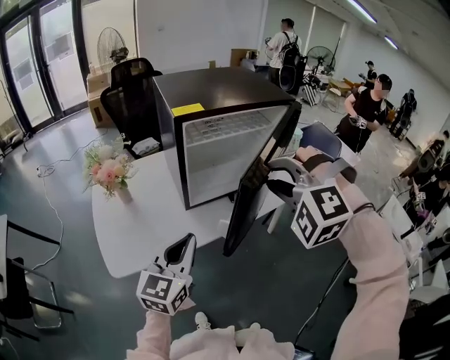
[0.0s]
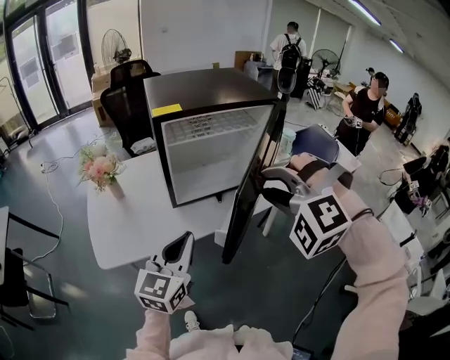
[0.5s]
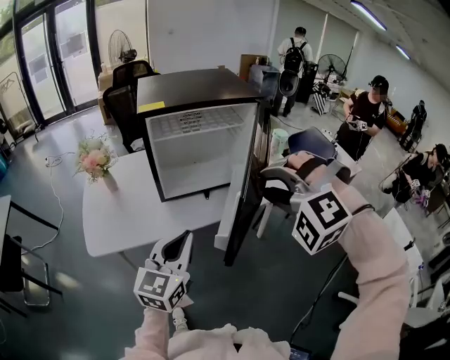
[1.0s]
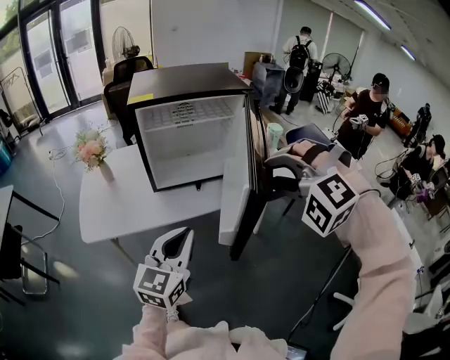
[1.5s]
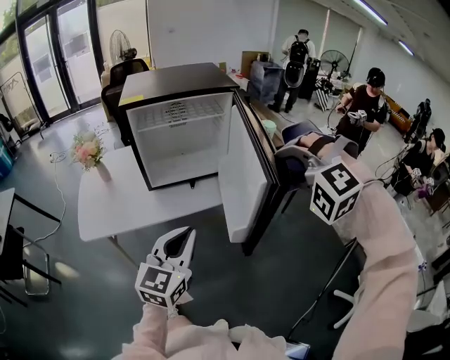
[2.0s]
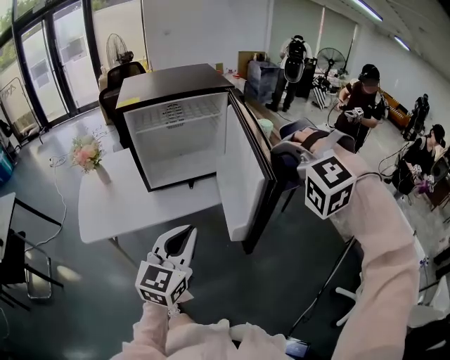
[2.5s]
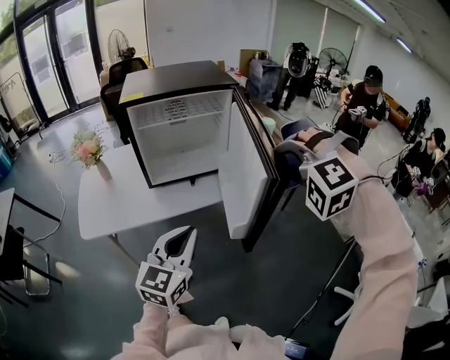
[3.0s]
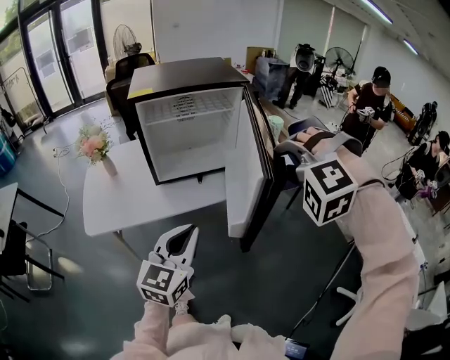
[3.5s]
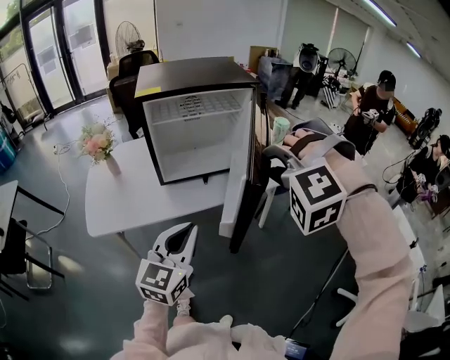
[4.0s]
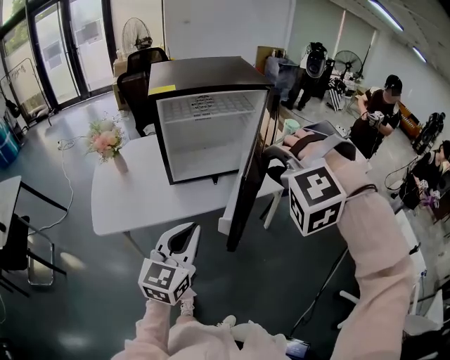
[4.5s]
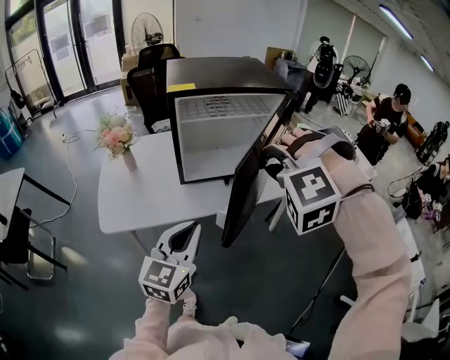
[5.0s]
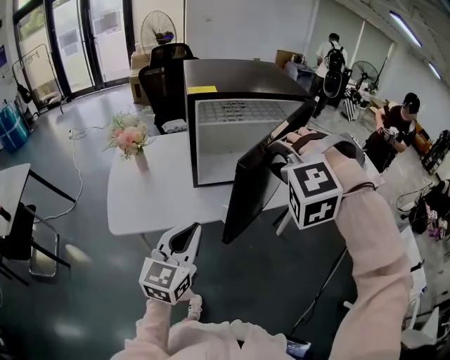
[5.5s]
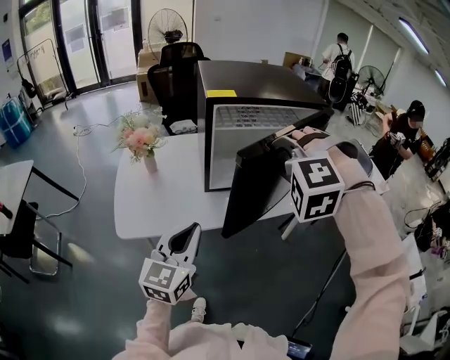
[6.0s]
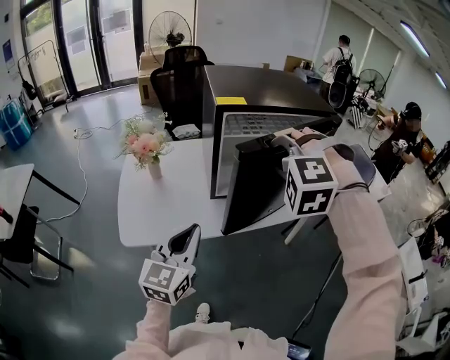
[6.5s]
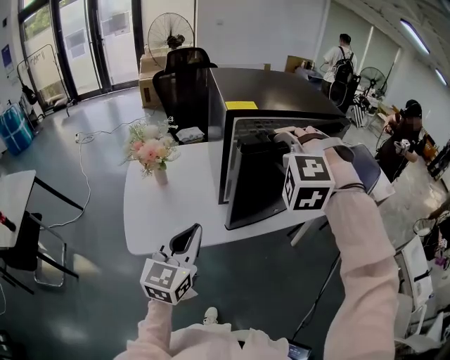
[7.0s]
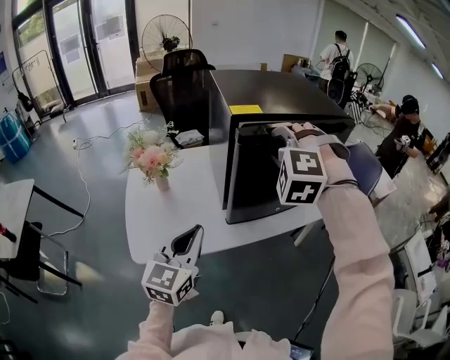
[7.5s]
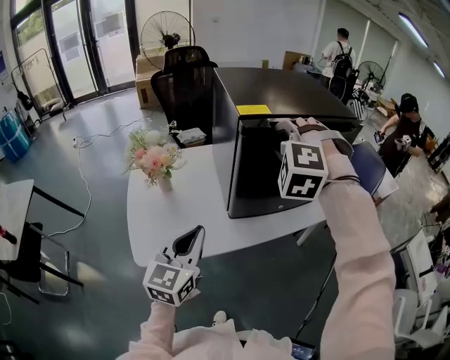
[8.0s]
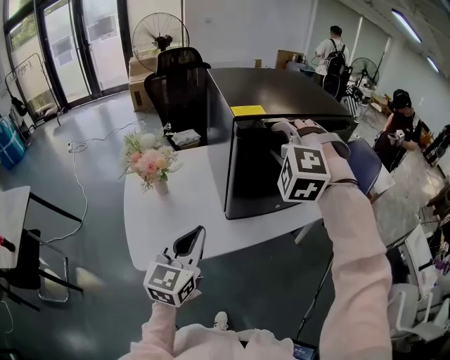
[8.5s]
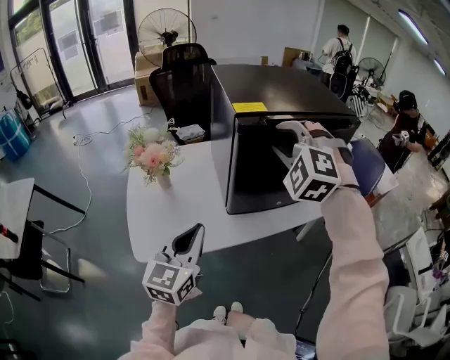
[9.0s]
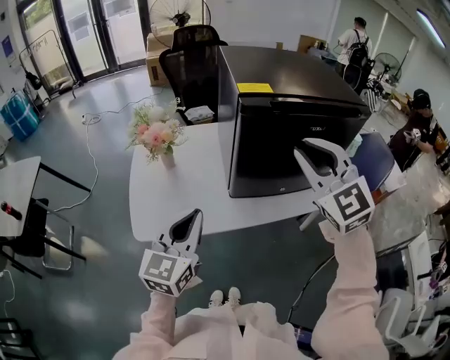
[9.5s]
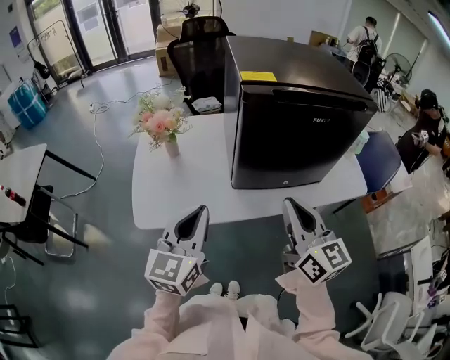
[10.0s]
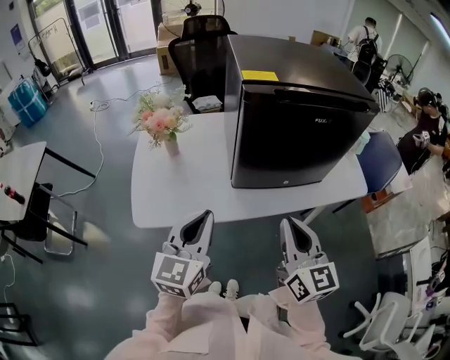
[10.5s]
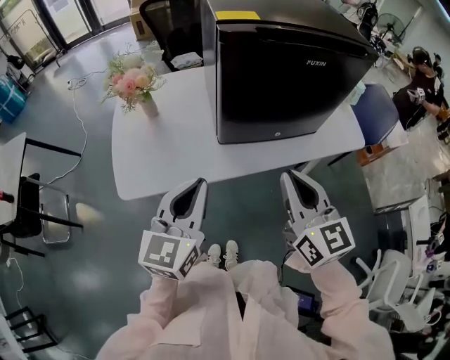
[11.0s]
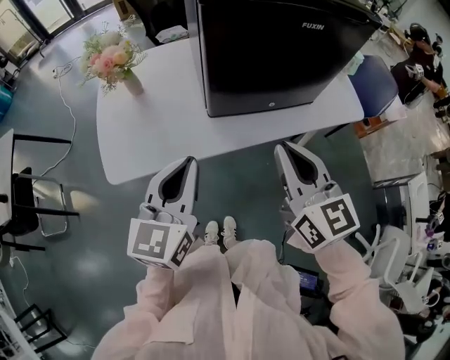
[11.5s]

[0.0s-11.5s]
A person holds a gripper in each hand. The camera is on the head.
0.0s to 2.0s: Both grippers move to the right, some 25 cm.
2.0s to 4.0s: The left gripper goes about 5 cm to the left. Meanwhile the right gripper goes approximately 10 cm to the left.
4.0s to 6.0s: The right gripper goes approximately 20 cm to the left and forward. Meanwhile the left gripper goes roughly 20 cm to the left.
6.0s to 7.5s: The left gripper travels to the left and forward by approximately 10 cm. The right gripper goes roughly 15 cm forward and to the left.
7.5s to 9.5s: The right gripper travels backward by about 5 cm, and swivels roughly 60 degrees.
9.5s to 11.5s: The right gripper goes about 20 cm downward and backward, and rolls clockwise, seen from behind, by roughly 40 degrees, while the left gripper goes about 5 cm to the right.

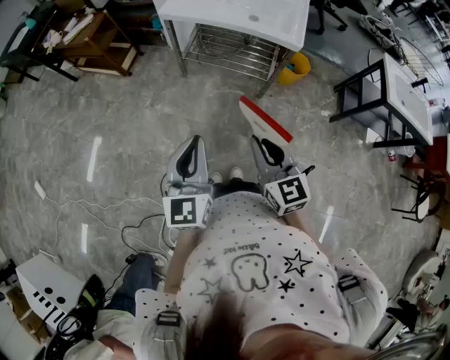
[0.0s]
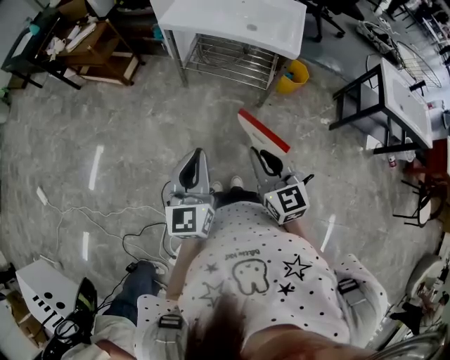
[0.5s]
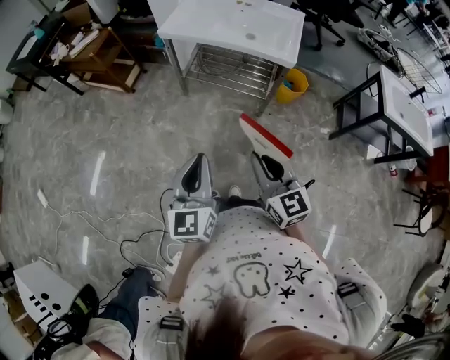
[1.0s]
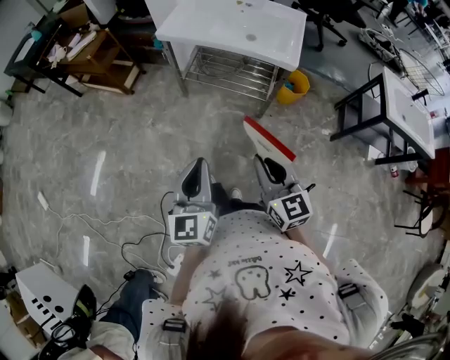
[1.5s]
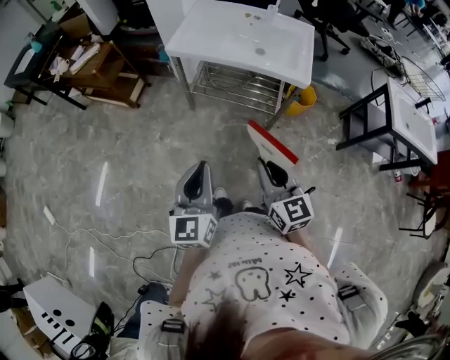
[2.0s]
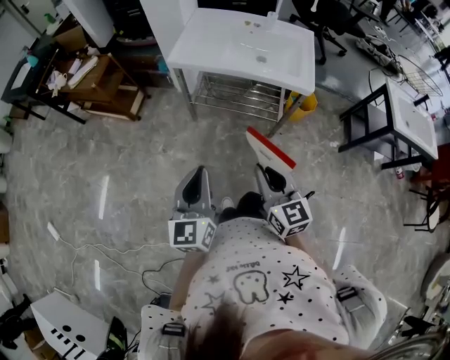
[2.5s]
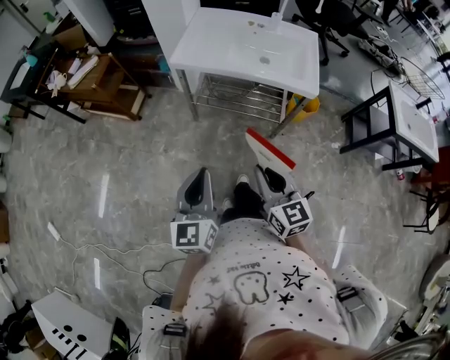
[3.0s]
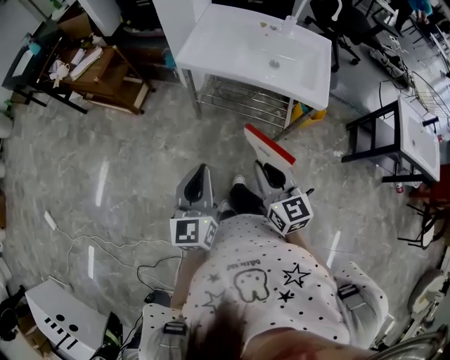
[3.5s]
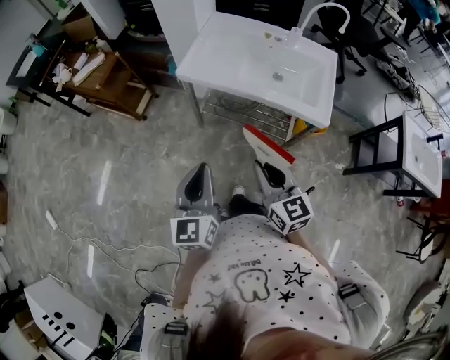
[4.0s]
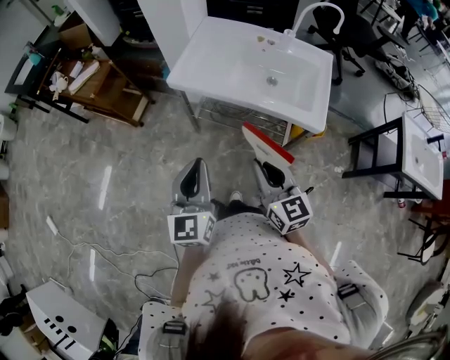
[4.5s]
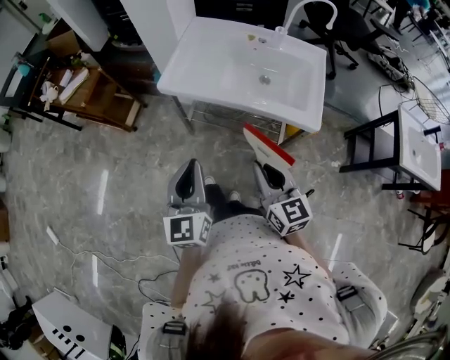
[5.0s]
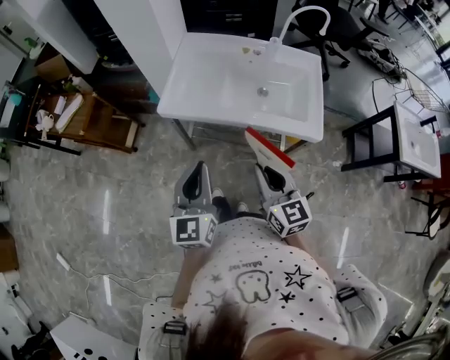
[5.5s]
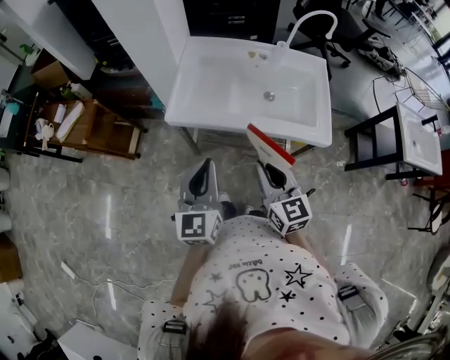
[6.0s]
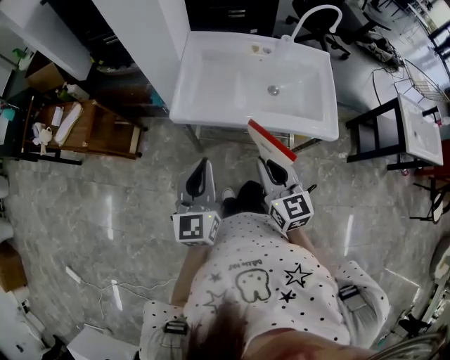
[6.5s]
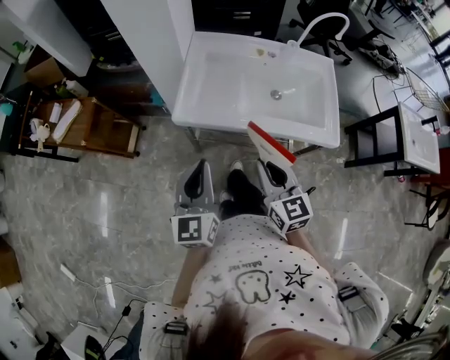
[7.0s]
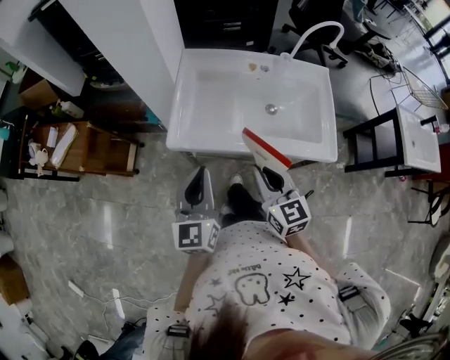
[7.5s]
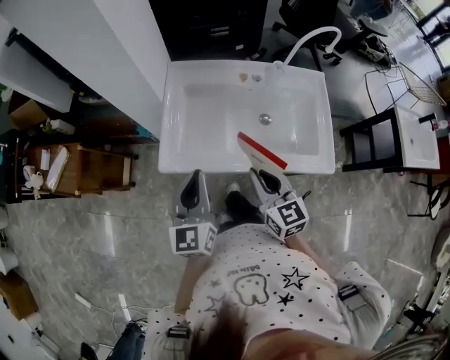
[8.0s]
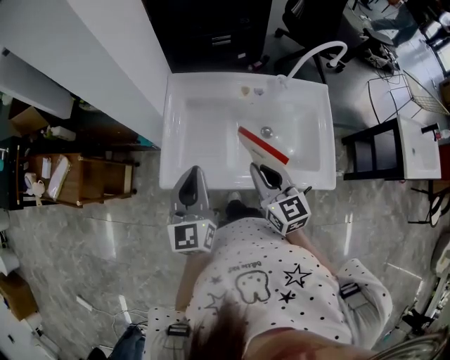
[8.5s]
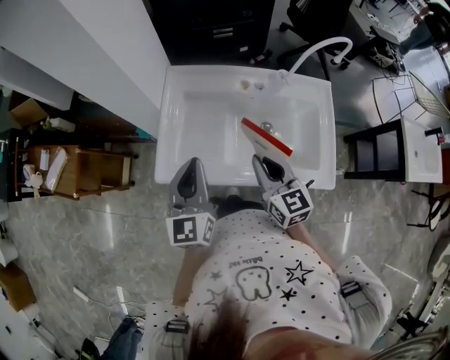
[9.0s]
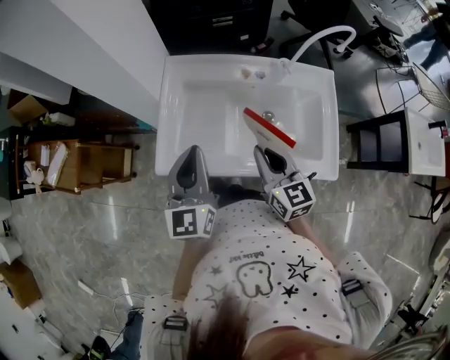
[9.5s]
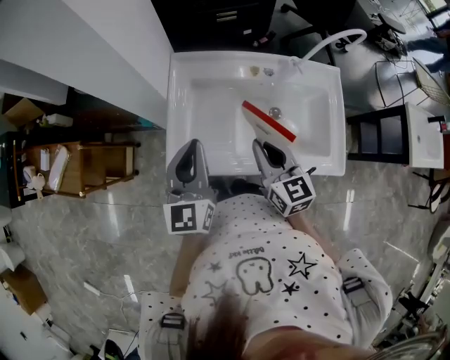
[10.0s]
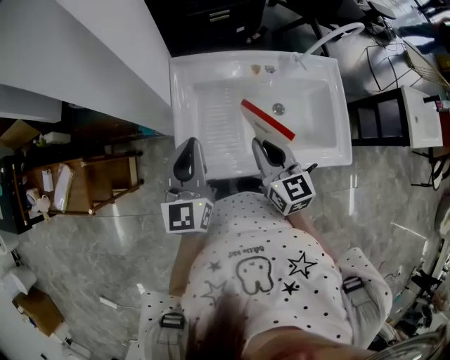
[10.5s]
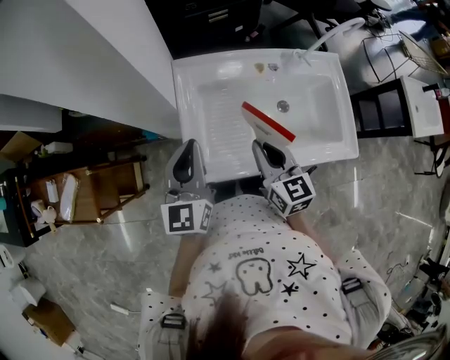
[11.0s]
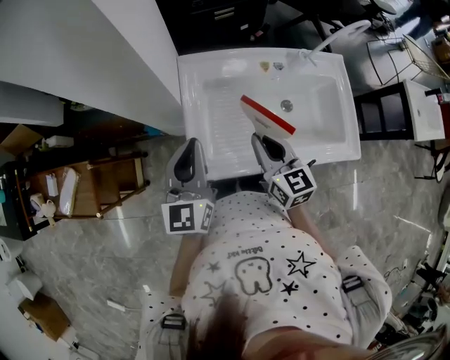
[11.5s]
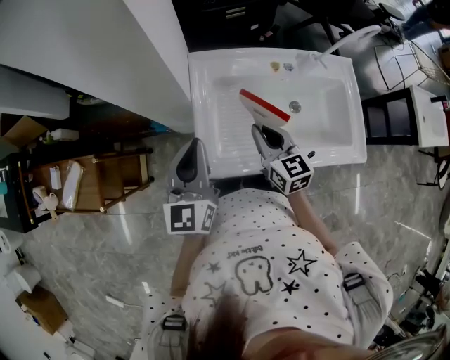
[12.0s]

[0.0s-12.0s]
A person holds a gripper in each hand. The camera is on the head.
0.0s to 2.0s: The two grippers go approximately 10 cm forward.
2.0s to 4.0s: The two grippers go about 15 cm forward.
4.0s to 6.0s: The grippers both shift forward by approximately 15 cm.
6.0s to 8.0s: The two grippers go some 15 cm forward.
8.0s to 10.0s: Both grippers move forward, roughly 10 cm.
10.0s to 12.0s: The left gripper heads to the left, covering roughly 10 cm. Meanwhile the right gripper goes some 10 cm to the left and forward.

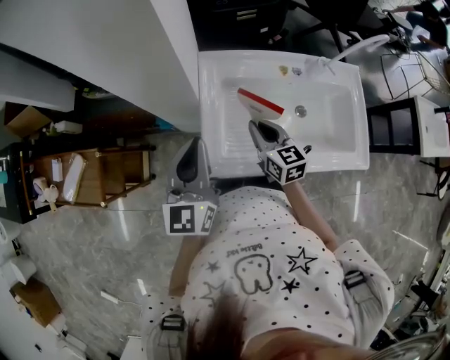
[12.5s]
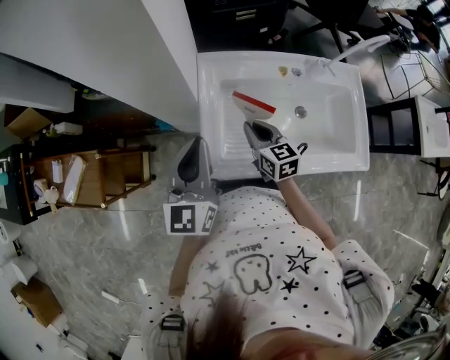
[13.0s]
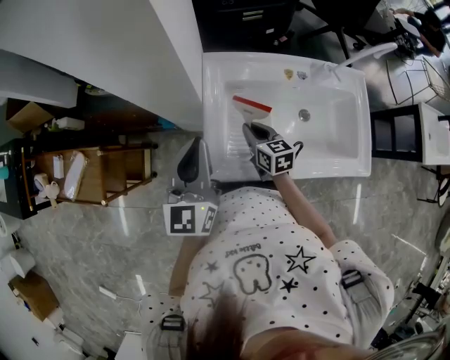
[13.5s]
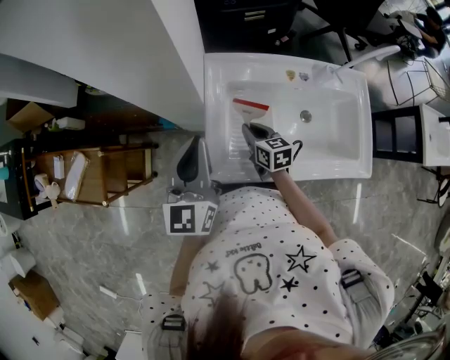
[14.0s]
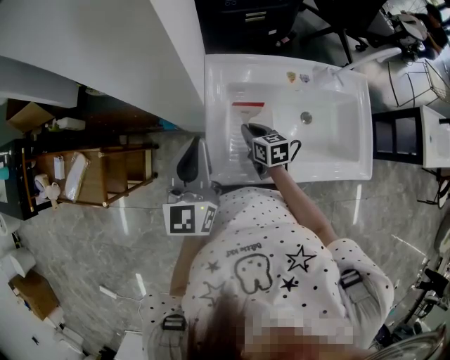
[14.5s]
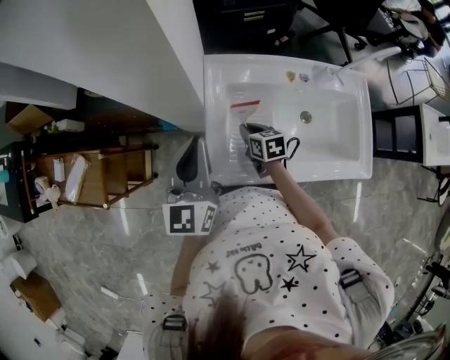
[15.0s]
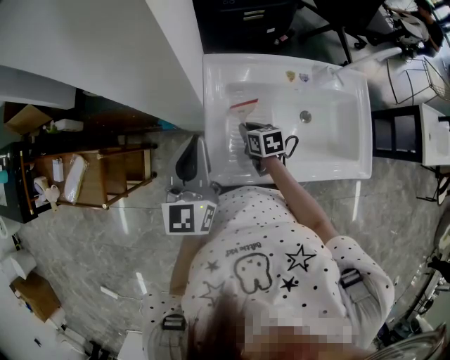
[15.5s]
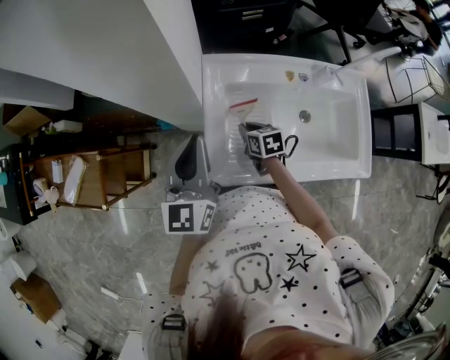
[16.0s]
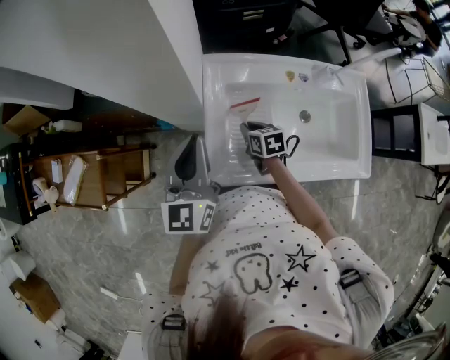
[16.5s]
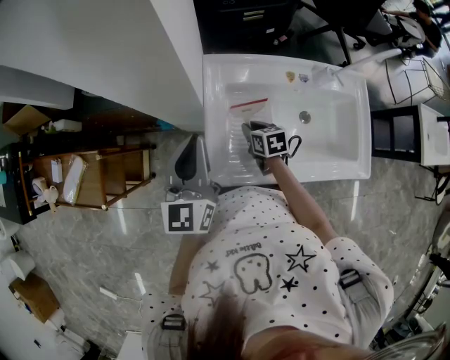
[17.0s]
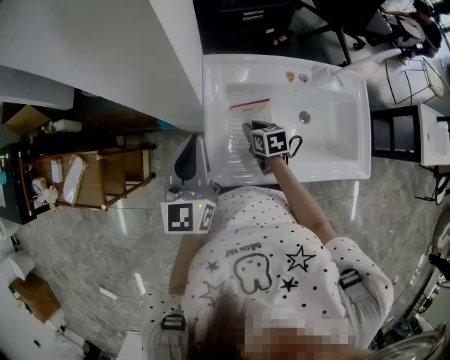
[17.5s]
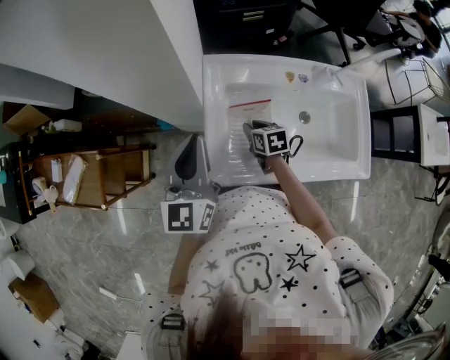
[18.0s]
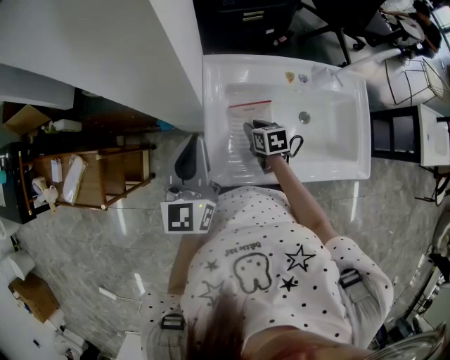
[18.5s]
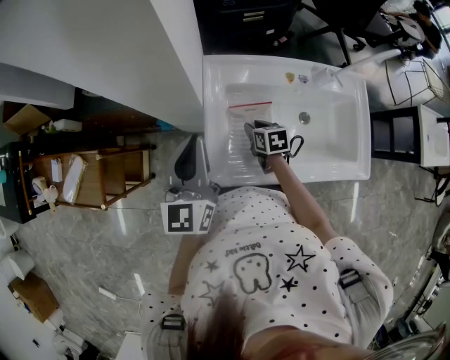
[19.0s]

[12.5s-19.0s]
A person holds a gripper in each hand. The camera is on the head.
12.5s to 14.5s: The right gripper shifts approximately 10 cm downward, and changes its angle by roughly 20 degrees.
14.5s to 19.0s: There are only small adjustments of the grippers.
